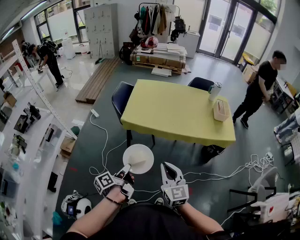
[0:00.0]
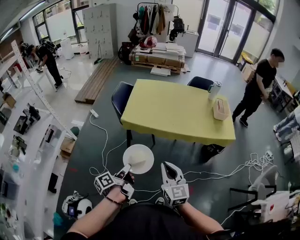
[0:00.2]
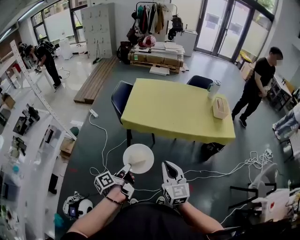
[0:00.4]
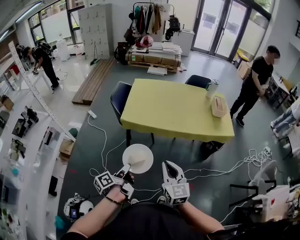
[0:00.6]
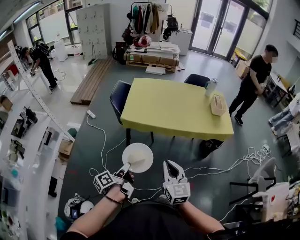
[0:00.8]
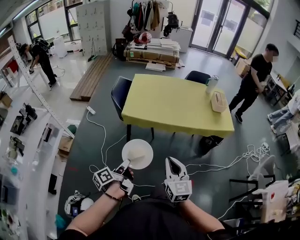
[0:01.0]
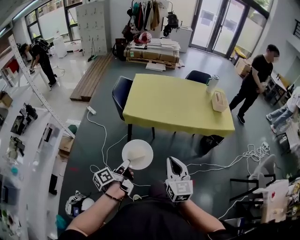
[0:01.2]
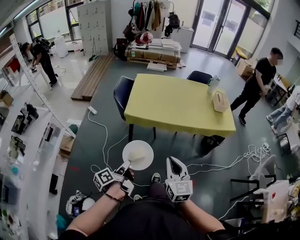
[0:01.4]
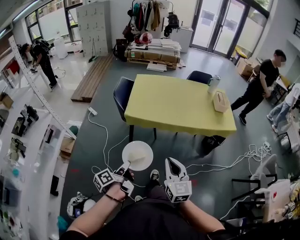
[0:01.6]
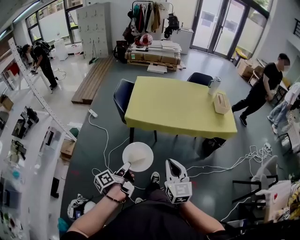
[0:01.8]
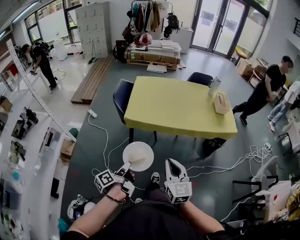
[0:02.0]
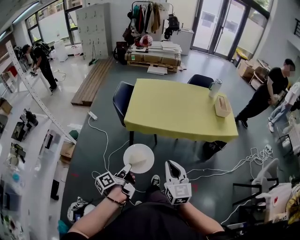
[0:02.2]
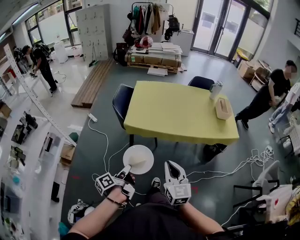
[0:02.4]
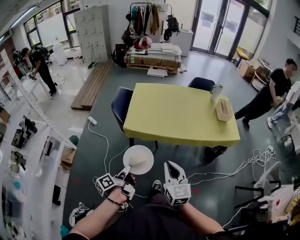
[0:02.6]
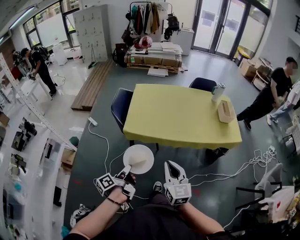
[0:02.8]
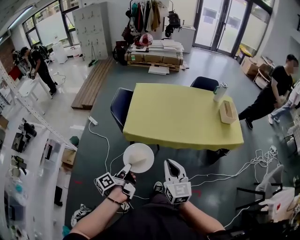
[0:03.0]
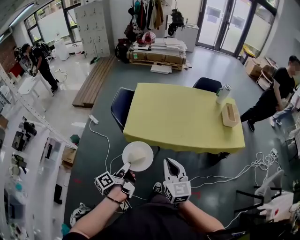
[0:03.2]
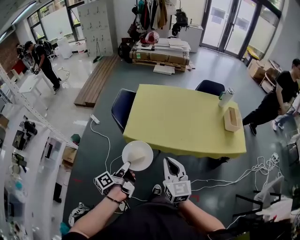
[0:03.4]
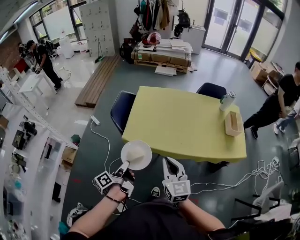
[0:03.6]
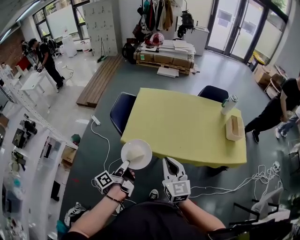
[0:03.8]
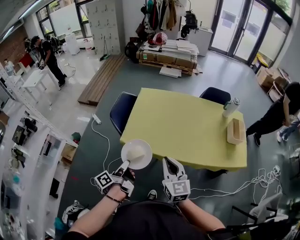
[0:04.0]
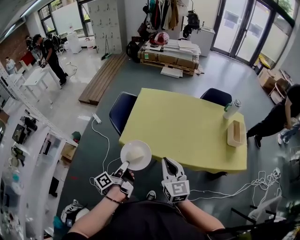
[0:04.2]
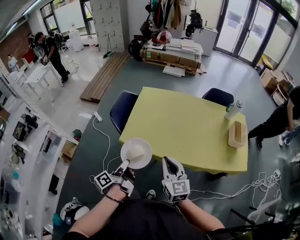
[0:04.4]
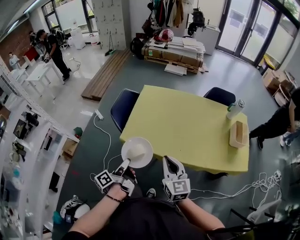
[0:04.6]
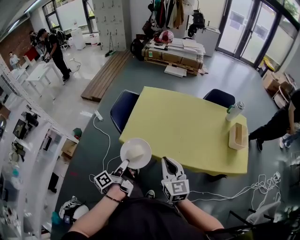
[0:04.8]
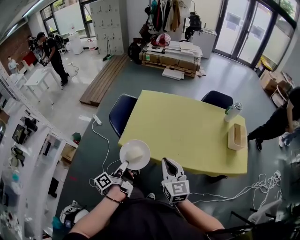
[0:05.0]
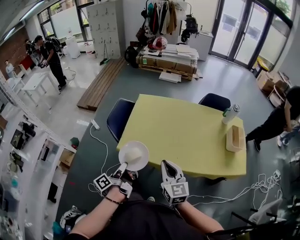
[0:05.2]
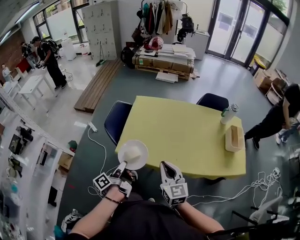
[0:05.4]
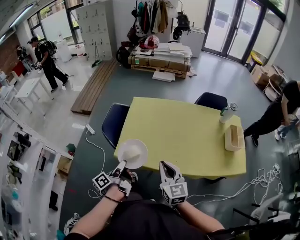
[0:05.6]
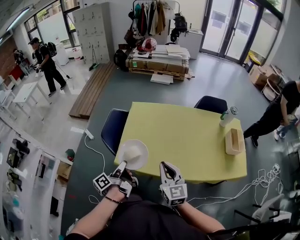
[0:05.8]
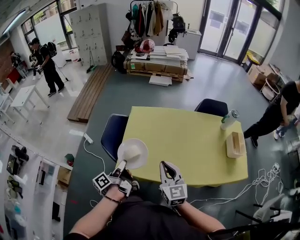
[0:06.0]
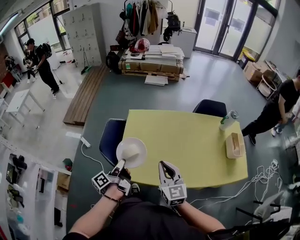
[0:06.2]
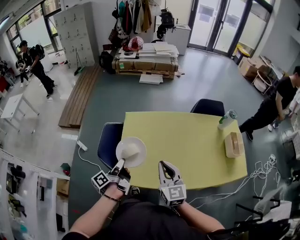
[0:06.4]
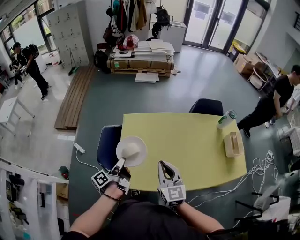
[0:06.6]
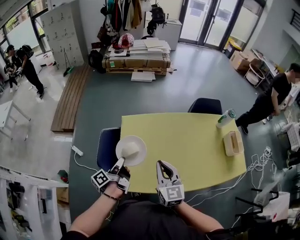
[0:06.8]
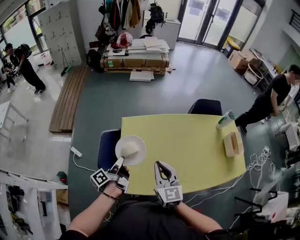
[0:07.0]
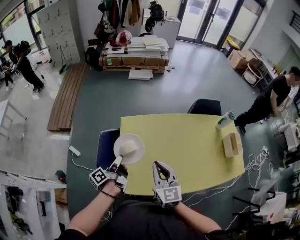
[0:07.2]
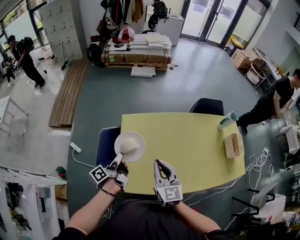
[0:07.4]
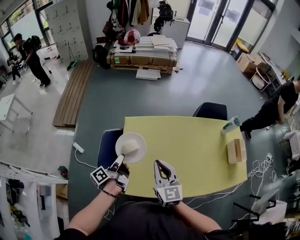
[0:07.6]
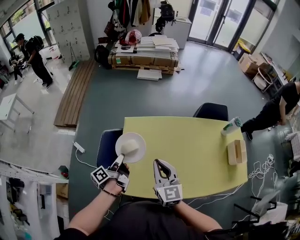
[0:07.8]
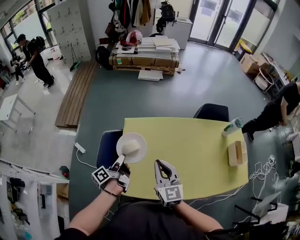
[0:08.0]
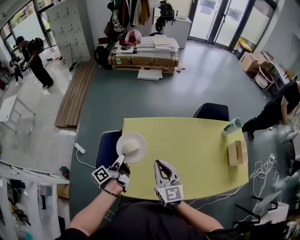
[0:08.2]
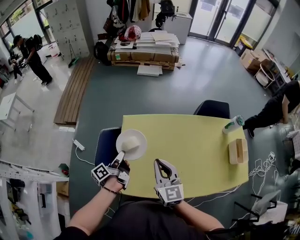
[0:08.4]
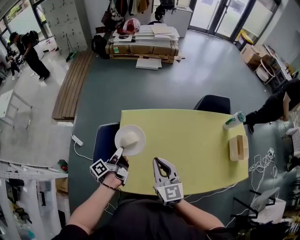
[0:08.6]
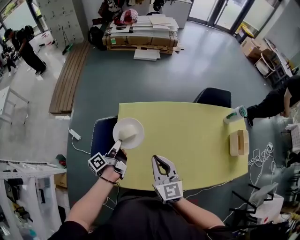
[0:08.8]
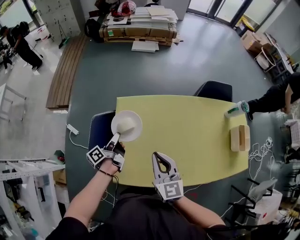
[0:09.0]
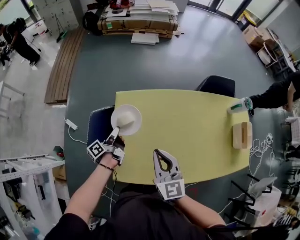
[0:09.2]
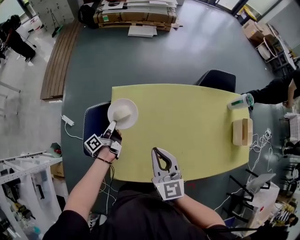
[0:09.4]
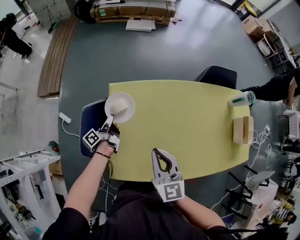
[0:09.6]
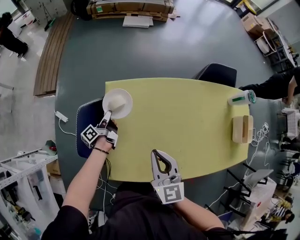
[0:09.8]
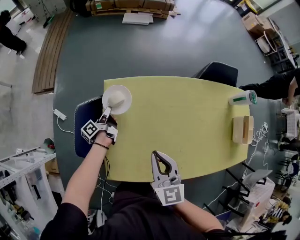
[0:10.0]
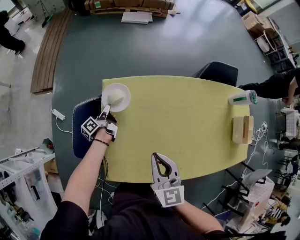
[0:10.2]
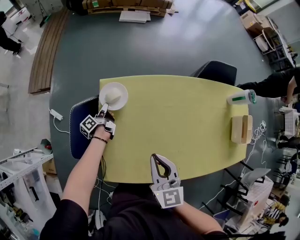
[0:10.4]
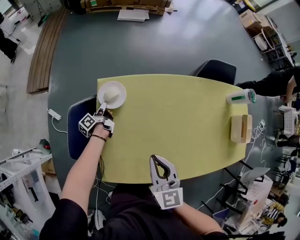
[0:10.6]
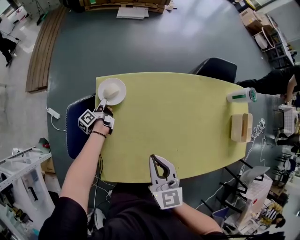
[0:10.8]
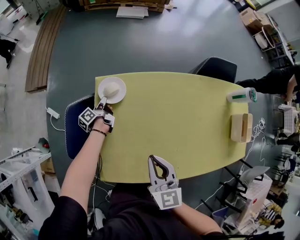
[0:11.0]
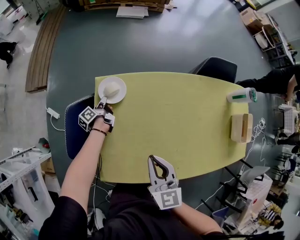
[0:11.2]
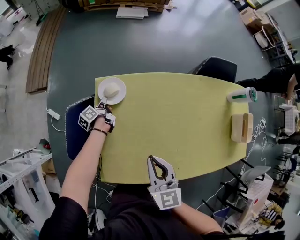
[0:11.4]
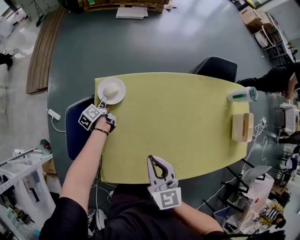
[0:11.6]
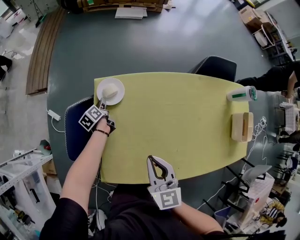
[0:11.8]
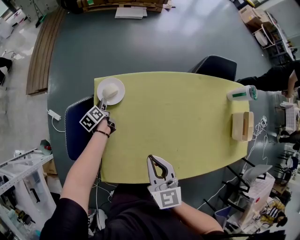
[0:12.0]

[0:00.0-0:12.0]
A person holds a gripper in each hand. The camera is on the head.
0:00.0 to 0:01.6: The grippers both shift to the left by some 5 cm.
0:01.6 to 0:03.0: The grippers both shift forward by roughly 15 cm.
0:03.0 to 0:04.4: The right gripper heads forward, covering approximately 15 cm. Meanwhile the left gripper moves forward and to the right, some 15 cm.
0:04.4 to 0:06.0: Both grippers travel together forward, approximately 20 cm.
0:06.0 to 0:07.6: The right gripper travels forward and to the left by some 20 cm; the left gripper heads forward, covering about 20 cm.
0:07.6 to 0:09.0: The right gripper ends up approximately 5 cm from where it was. The left gripper moves downward and forward, some 10 cm.
0:09.0 to 0:10.4: The right gripper heads downward, covering about 5 cm. Meanwhile the left gripper goes about 25 cm downward and forward.
0:10.4 to 0:12.0: The left gripper swivels roughly 40 degrees.

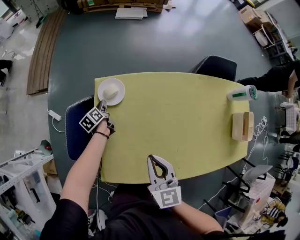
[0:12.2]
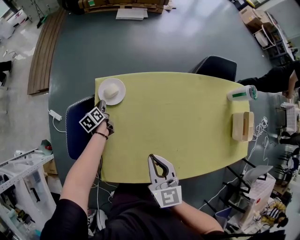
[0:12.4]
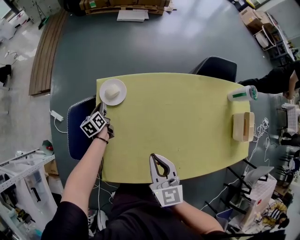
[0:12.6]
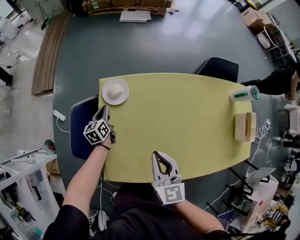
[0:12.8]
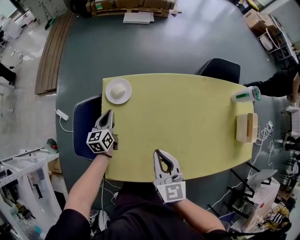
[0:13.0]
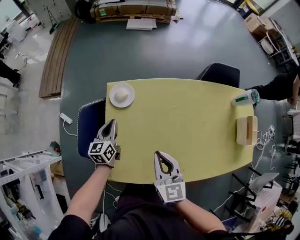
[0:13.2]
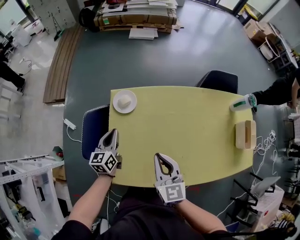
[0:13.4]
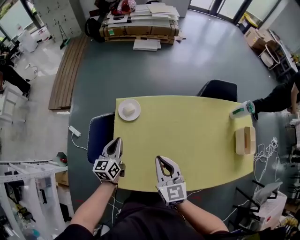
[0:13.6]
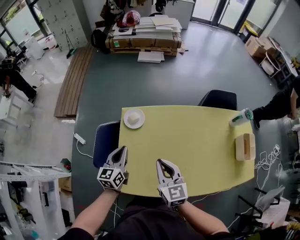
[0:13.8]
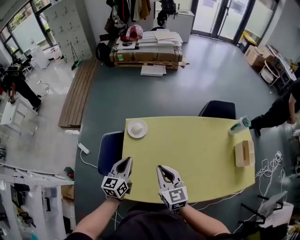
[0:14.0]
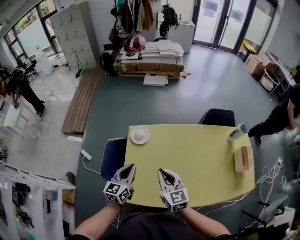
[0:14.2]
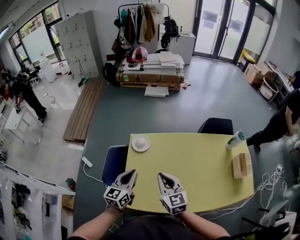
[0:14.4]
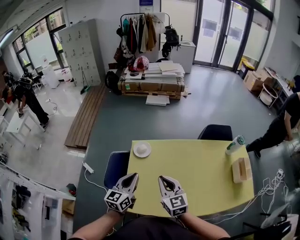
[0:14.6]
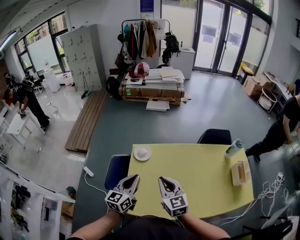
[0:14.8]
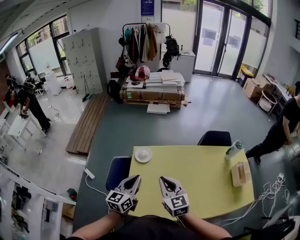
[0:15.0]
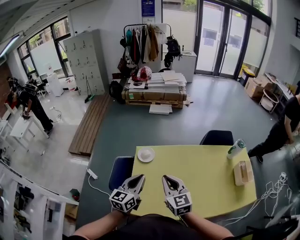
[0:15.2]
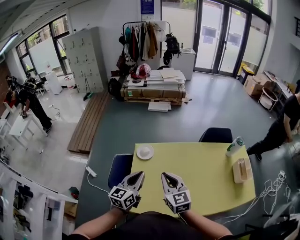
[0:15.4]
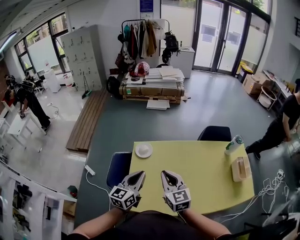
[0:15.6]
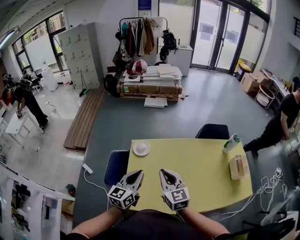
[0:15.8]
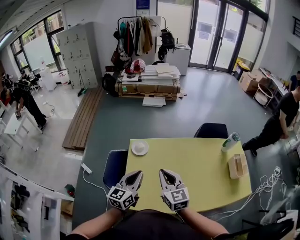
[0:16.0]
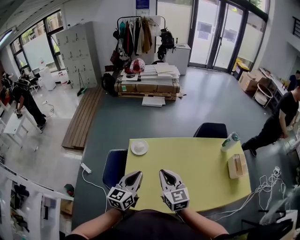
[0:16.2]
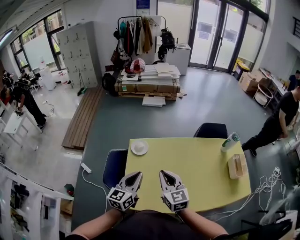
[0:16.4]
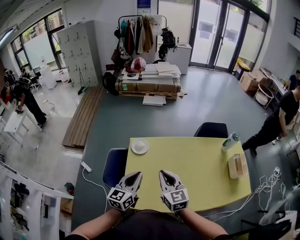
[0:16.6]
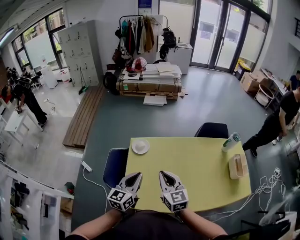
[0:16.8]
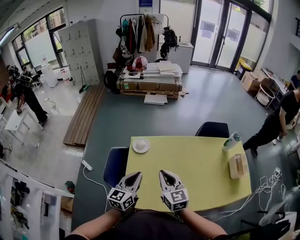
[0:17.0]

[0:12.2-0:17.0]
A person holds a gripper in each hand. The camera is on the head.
0:12.2 to 0:13.8: The left gripper goes some 35 cm upward and backward, and swivels roughly 40 degrees, while the right gripper heads upward, covering about 5 cm.
0:13.8 to 0:15.4: The right gripper goes roughly 10 cm upward. The left gripper heads upward and backward, covering roughly 20 cm.
0:15.4 to 0:17.0: The grippers make only small movements.

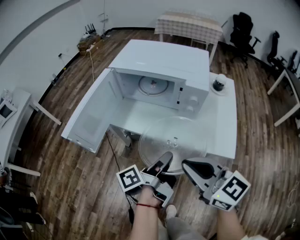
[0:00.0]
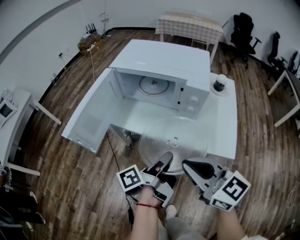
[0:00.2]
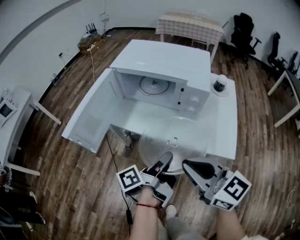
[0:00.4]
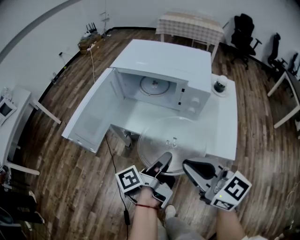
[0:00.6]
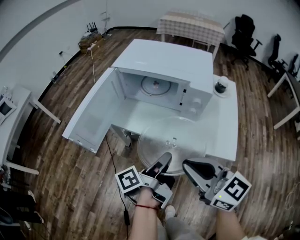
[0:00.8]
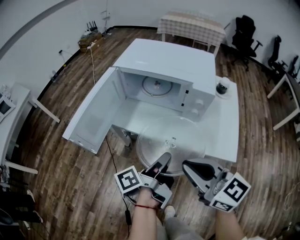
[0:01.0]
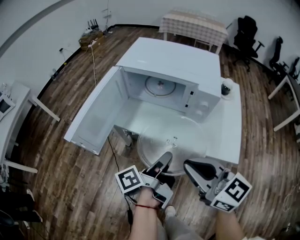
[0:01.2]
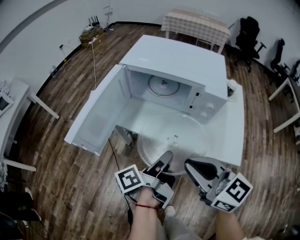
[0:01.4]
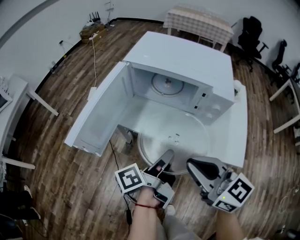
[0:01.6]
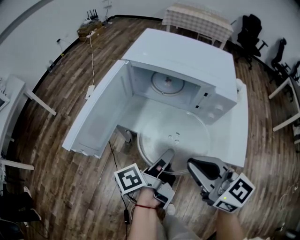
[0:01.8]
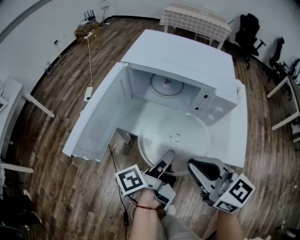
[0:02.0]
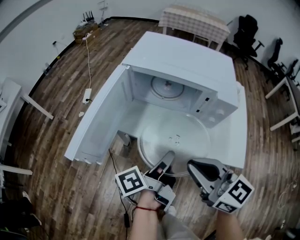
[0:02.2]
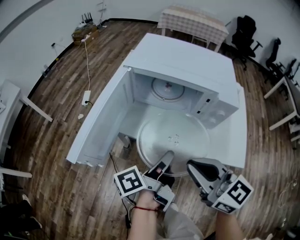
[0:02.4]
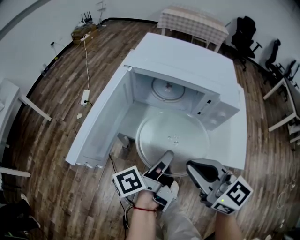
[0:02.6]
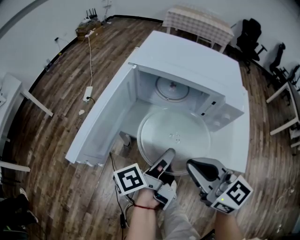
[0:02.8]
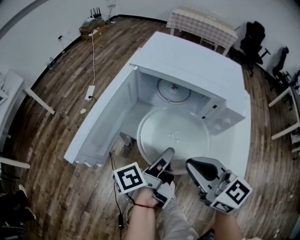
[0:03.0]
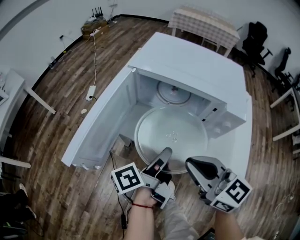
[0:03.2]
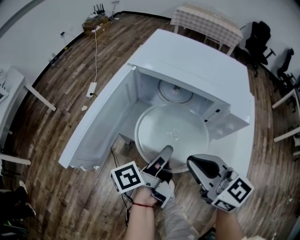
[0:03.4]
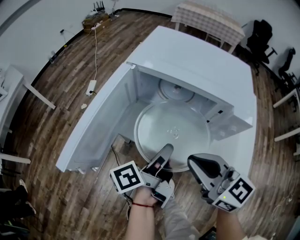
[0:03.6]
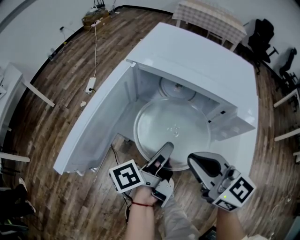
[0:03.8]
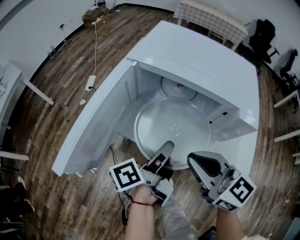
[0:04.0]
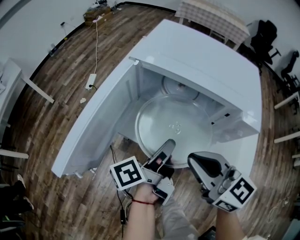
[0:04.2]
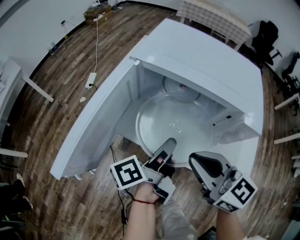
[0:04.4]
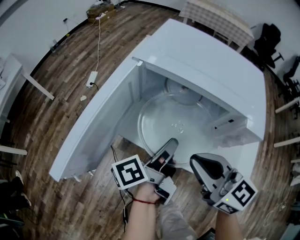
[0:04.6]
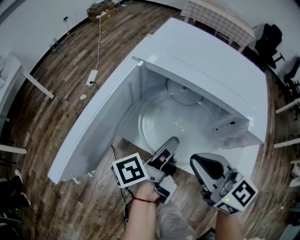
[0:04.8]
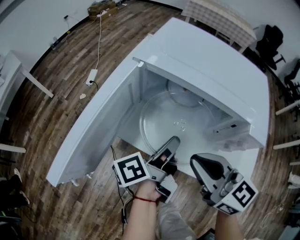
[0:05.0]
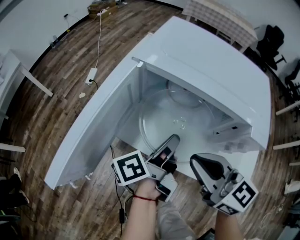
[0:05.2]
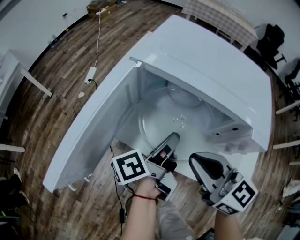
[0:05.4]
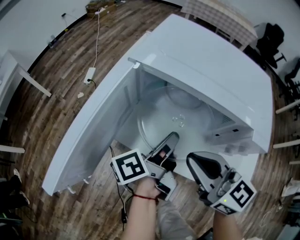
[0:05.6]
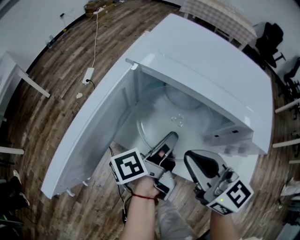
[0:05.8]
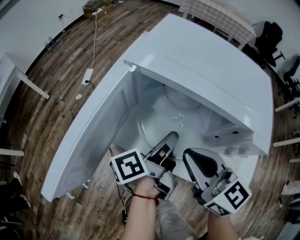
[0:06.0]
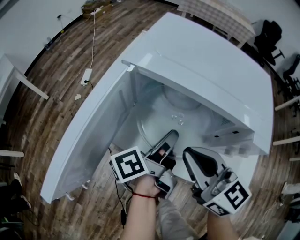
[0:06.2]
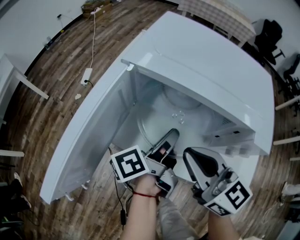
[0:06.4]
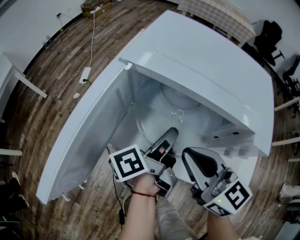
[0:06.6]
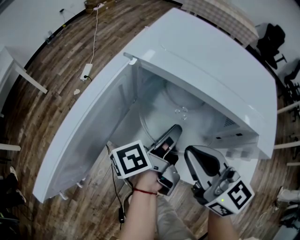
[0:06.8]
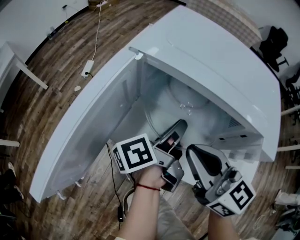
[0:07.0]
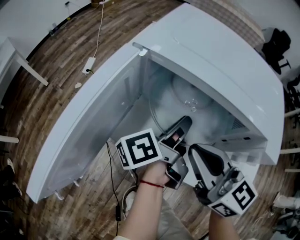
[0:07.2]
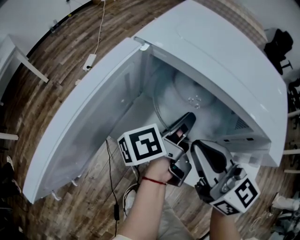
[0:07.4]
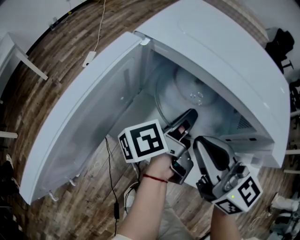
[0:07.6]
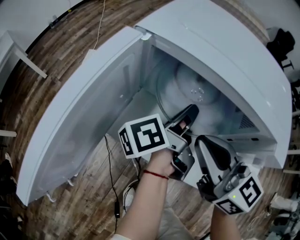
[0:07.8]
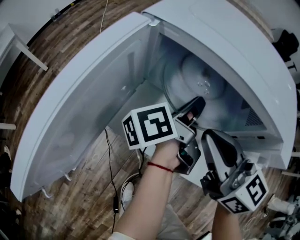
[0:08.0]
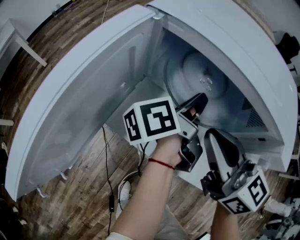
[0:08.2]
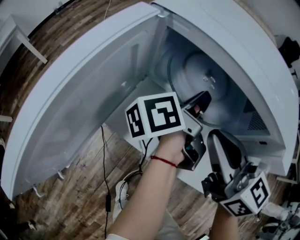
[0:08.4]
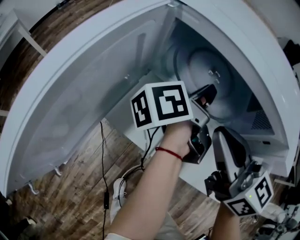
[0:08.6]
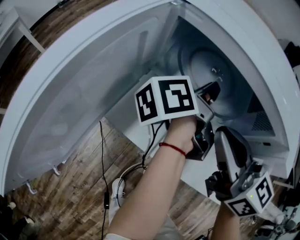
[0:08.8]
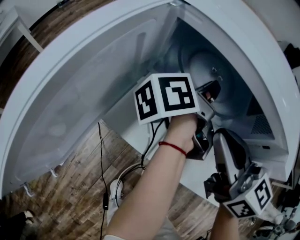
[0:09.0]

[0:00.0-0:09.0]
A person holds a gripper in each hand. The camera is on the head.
0:00.0 to 0:01.6: The right gripper moves approximately 10 cm.
0:01.6 to 0:03.0: The right gripper moves roughly 5 cm.
0:03.0 to 0:04.4: The right gripper ends up some 5 cm from where it was.
0:04.4 to 0:06.0: The right gripper shifts by about 5 cm.
0:06.0 to 0:07.6: The right gripper moves some 5 cm.
